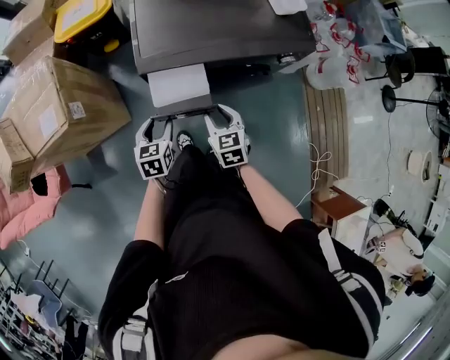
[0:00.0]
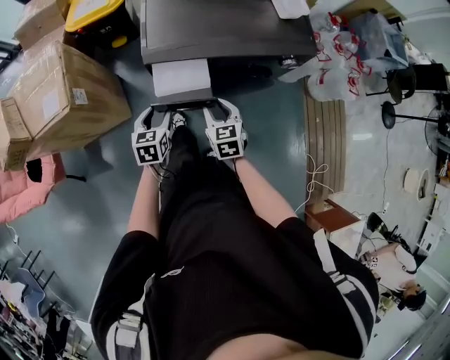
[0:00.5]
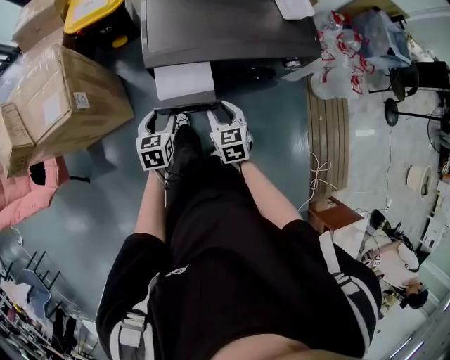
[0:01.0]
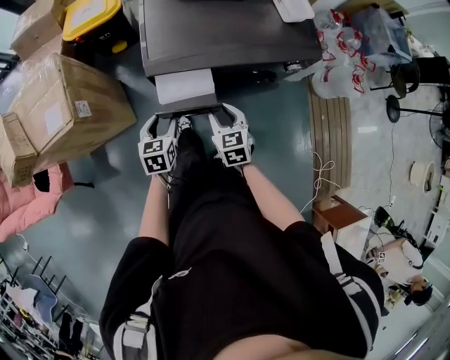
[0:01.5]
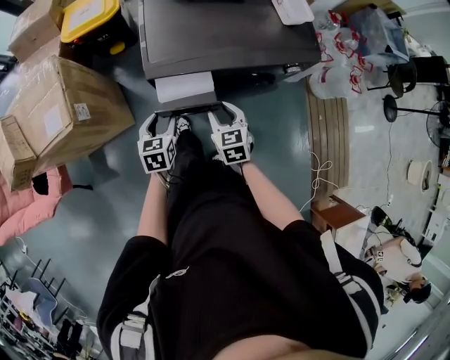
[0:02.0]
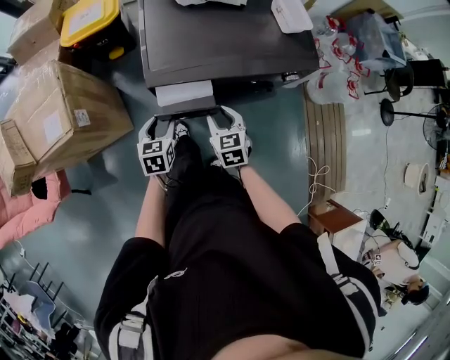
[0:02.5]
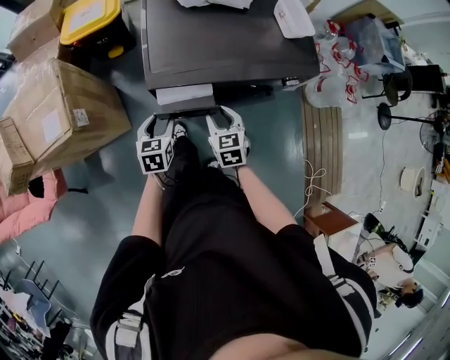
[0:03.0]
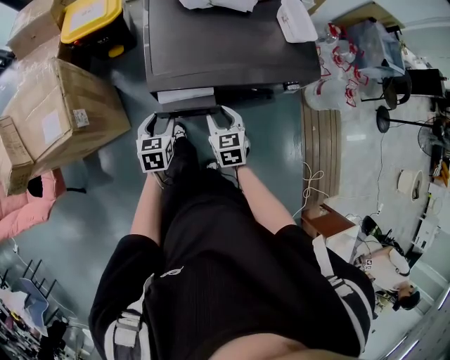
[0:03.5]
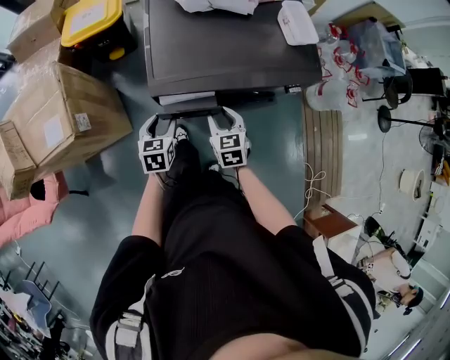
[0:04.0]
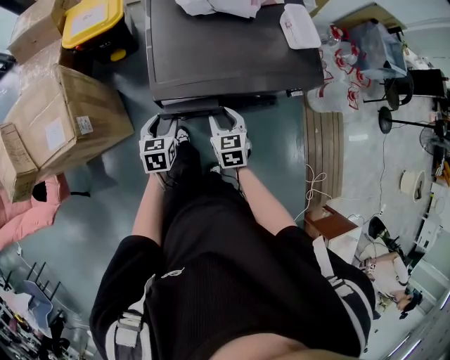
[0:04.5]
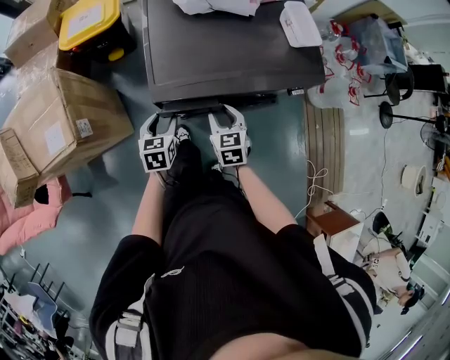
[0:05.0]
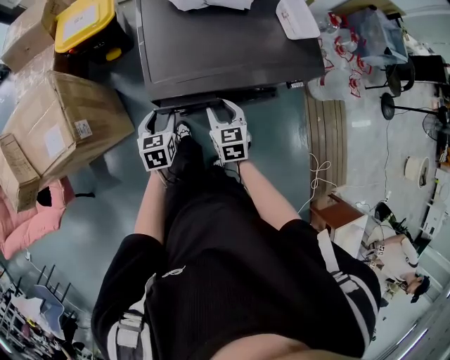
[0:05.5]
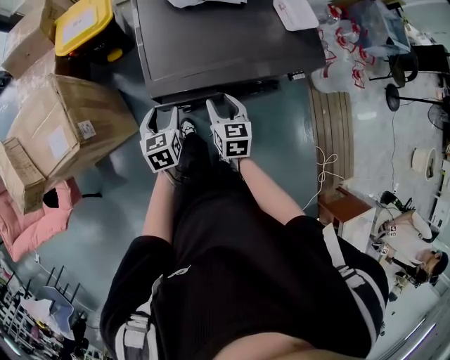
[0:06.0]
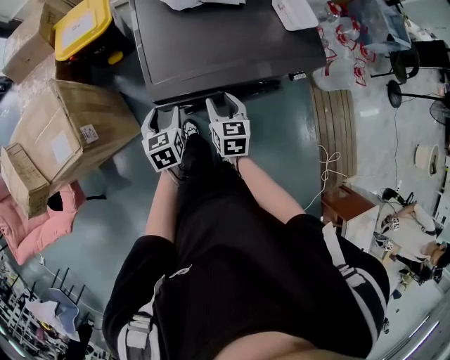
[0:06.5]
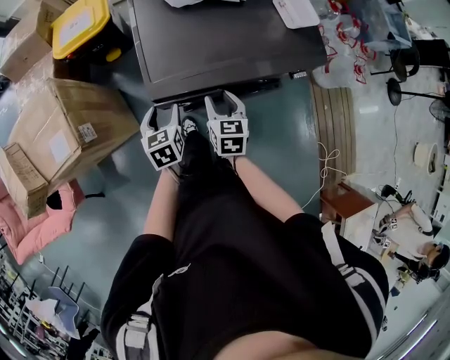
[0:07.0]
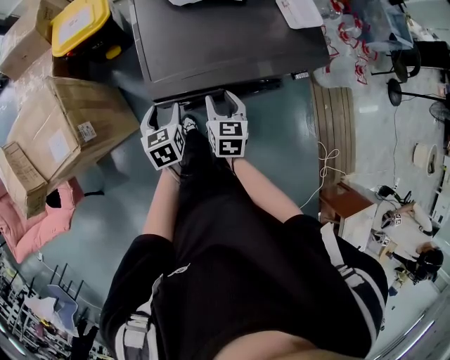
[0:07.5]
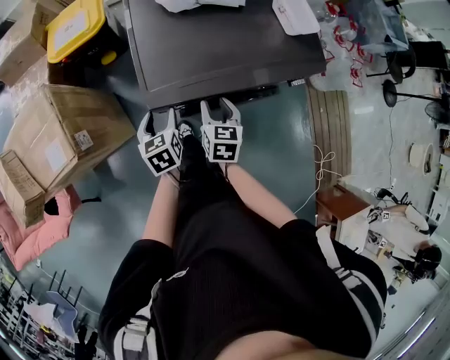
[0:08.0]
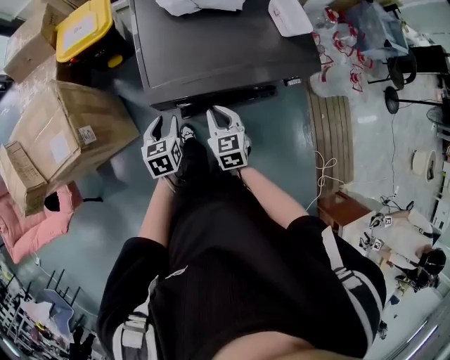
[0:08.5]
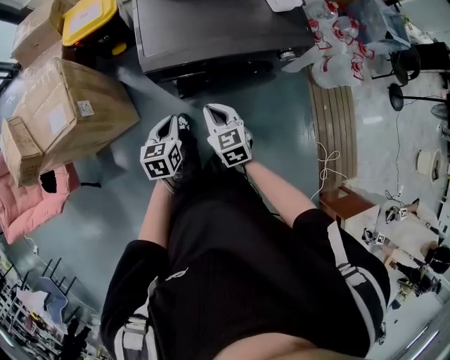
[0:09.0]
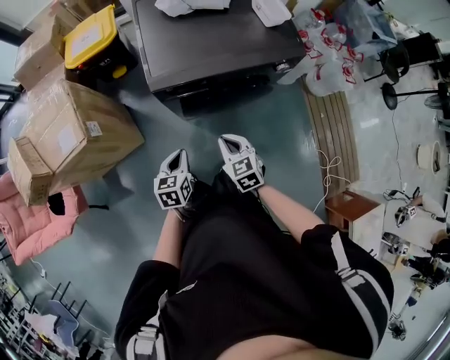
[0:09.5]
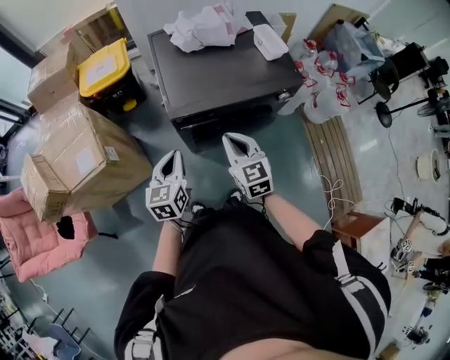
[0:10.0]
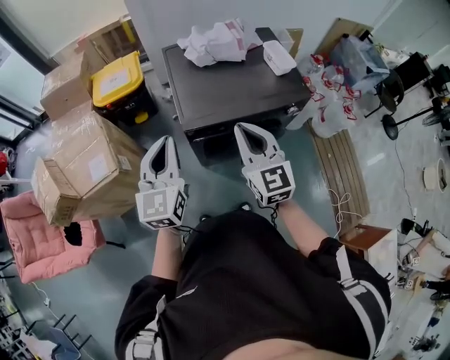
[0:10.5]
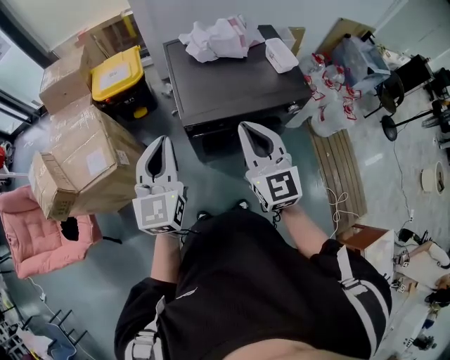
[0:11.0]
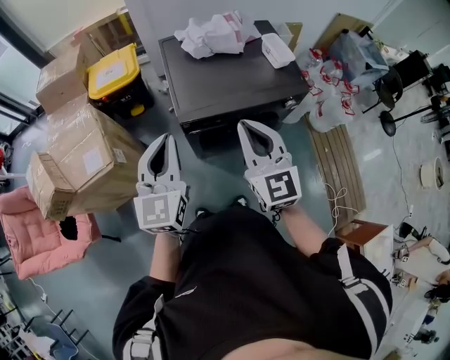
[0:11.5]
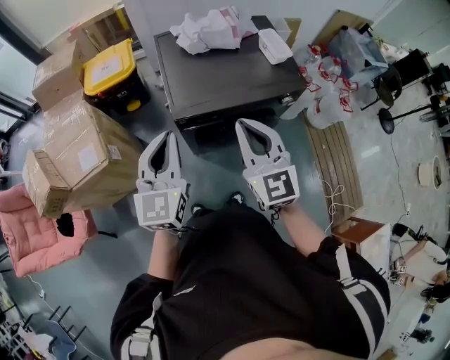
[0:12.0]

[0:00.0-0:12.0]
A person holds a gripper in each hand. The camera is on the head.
0:00.0 to 0:02.0: The grippers make only small movements.
0:02.0 to 0:04.0: The grippers stay close to where they were, moving slightly.
0:04.0 to 0:06.0: The grippers move only a little.
0:06.0 to 0:08.0: There are only small adjustments of the grippers.
0:08.0 to 0:10.0: The two grippers go approximately 20 cm upward and backward. The right gripper changes its angle by some 30 degrees, and closes its fingers. Meanwhile the left gripper changes its angle by some 30 degrees, and closes up.
0:10.0 to 0:12.0: Both grippers move upward, some 15 cm. The left gripper swivels roughly 20 degrees.

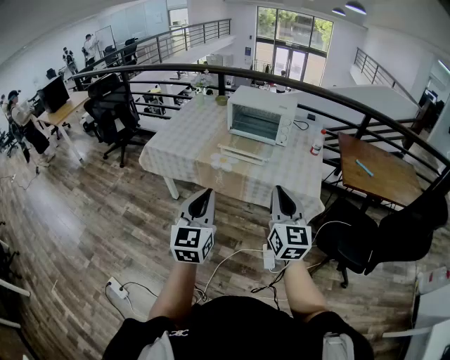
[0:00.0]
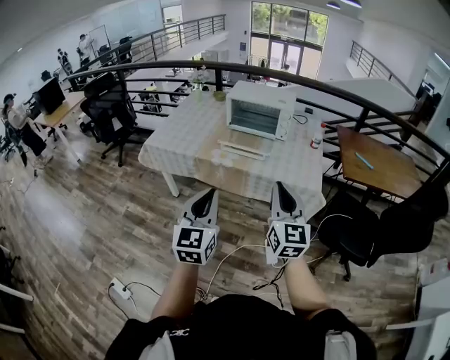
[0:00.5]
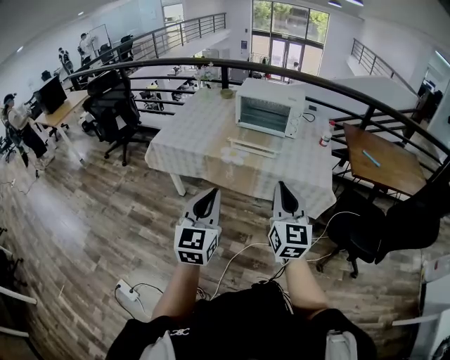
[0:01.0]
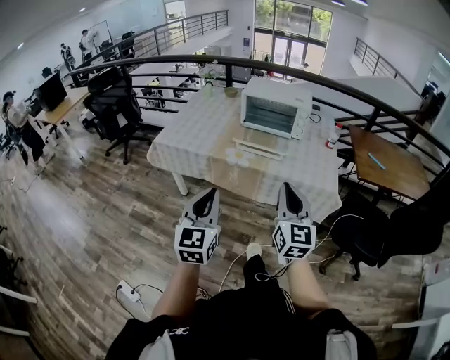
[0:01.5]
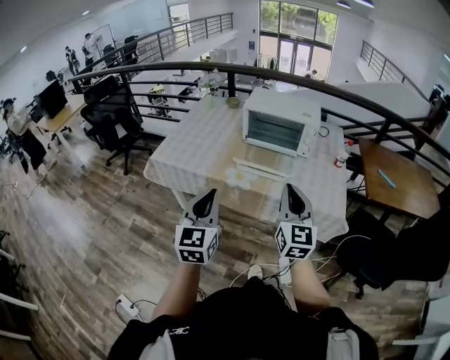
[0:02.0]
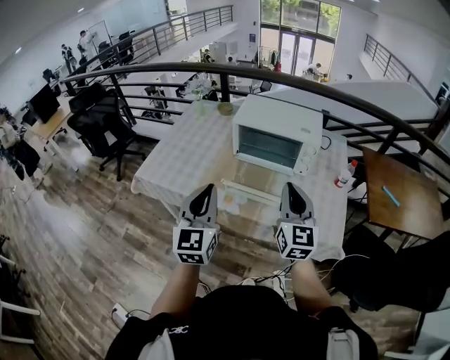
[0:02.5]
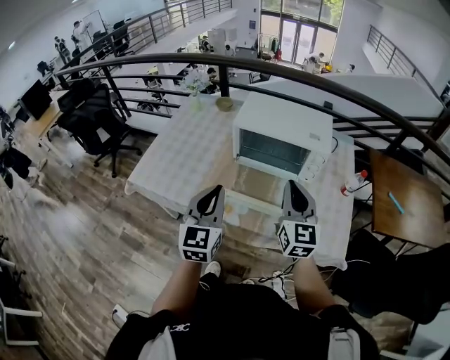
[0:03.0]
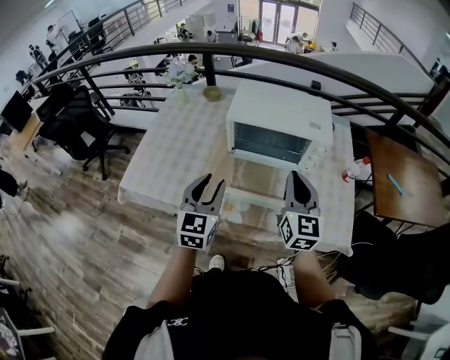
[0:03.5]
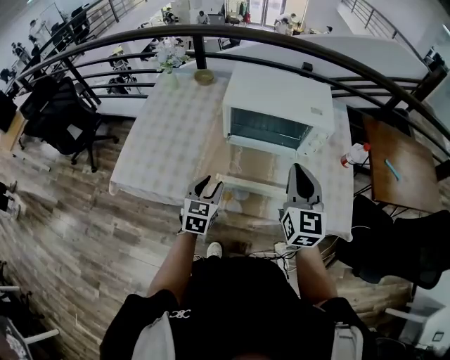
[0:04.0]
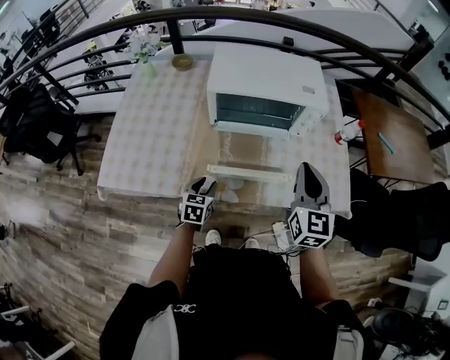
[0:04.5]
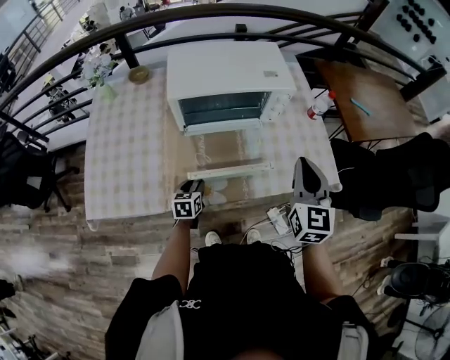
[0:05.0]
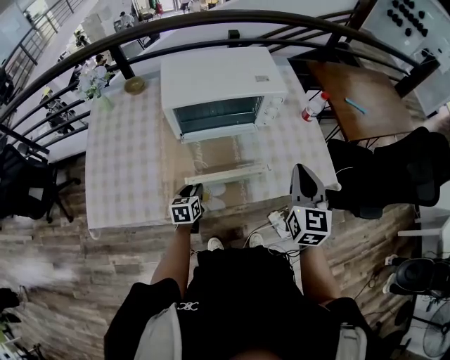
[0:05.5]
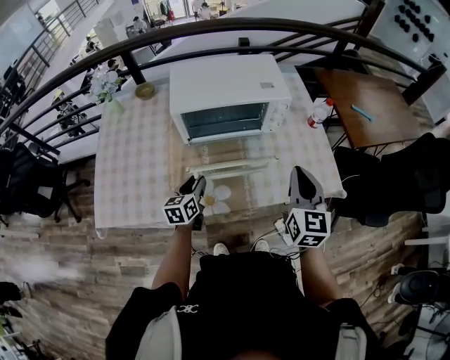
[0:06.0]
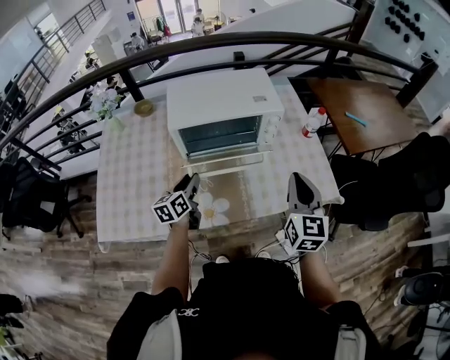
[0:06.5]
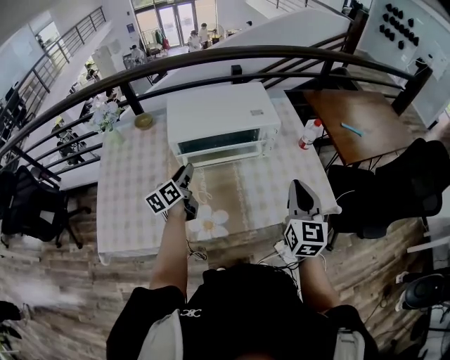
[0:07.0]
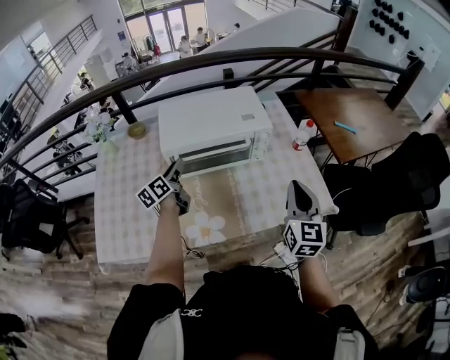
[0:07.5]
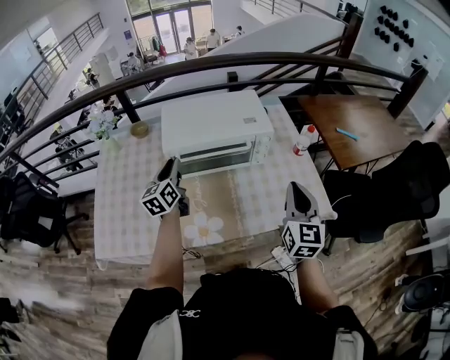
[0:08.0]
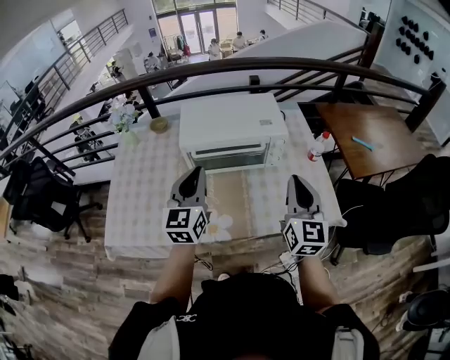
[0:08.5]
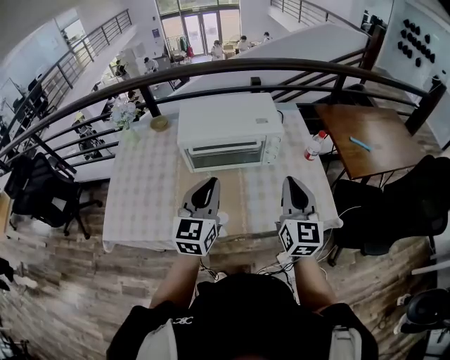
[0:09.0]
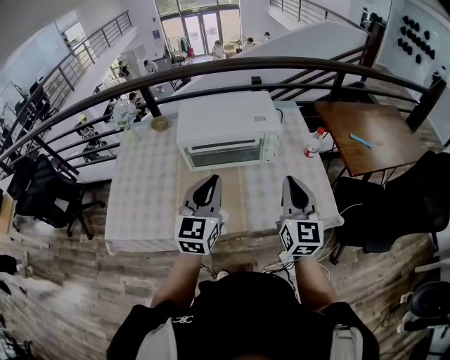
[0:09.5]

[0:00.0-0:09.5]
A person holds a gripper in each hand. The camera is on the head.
0:00.0 to 0:02.0: Both grippers travel together forward and to the left, about 20 cm.
0:02.0 to 0:04.0: The left gripper is displaced forward and downward by some 40 cm, rotates roughly 30 degrees, and opens its fingers. Meanwhile the right gripper shifts about 30 cm forward.
0:04.0 to 0:05.5: The left gripper travels downward by some 15 cm, and swivels about 20 degrees. The right gripper shifts some 10 cm to the right, and swivels some 20 degrees.
0:05.5 to 0:07.5: The left gripper travels upward and forward by about 25 cm, and changes its angle by approximately 40 degrees.
0:07.5 to 0:09.5: The left gripper travels backward, to the right and upward by some 30 cm, rolls clockwise, seen from behind, by approximately 50 degrees, and closes.

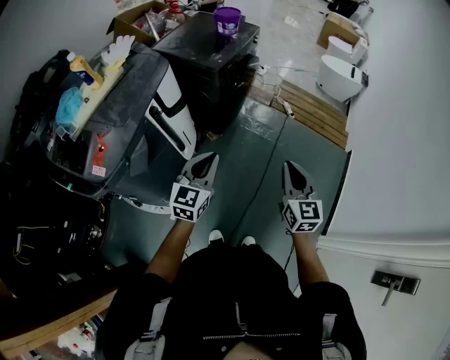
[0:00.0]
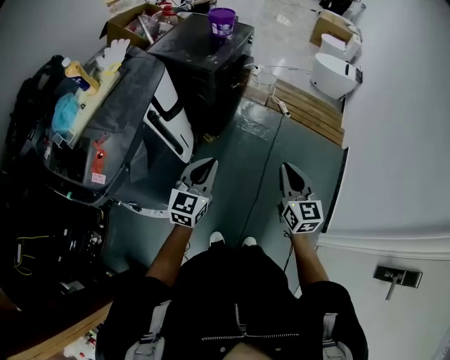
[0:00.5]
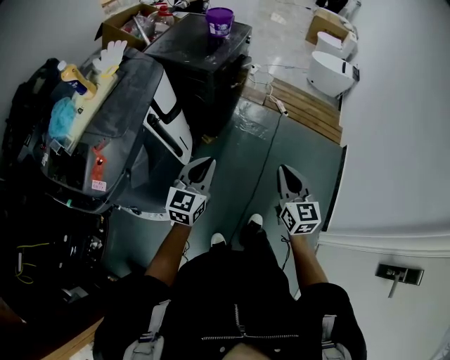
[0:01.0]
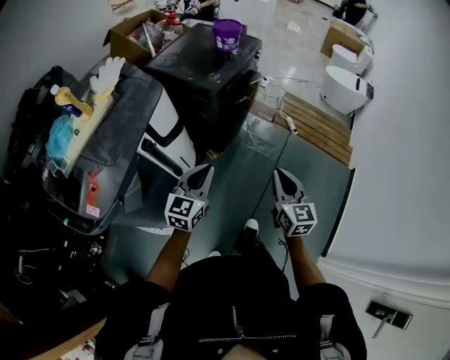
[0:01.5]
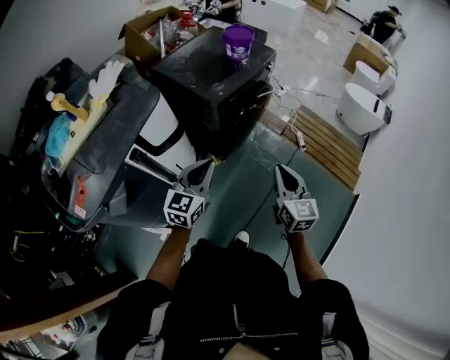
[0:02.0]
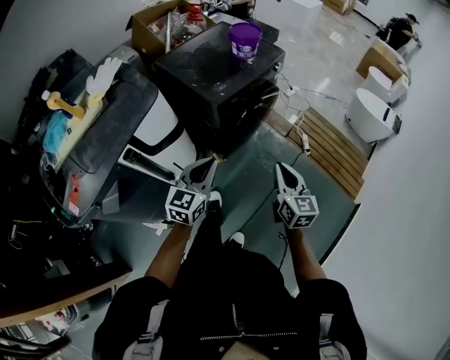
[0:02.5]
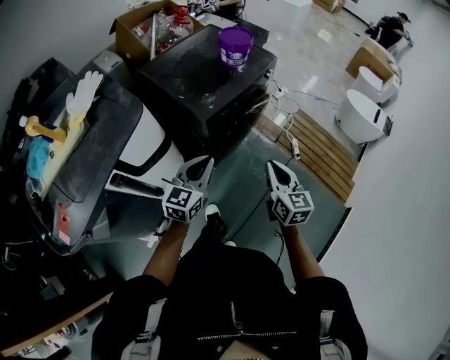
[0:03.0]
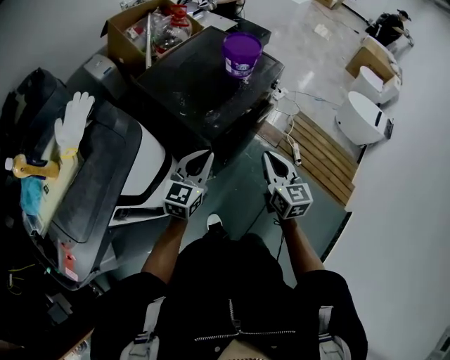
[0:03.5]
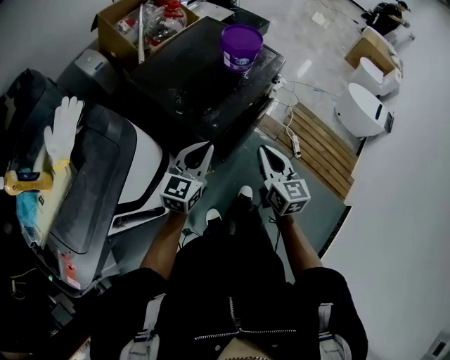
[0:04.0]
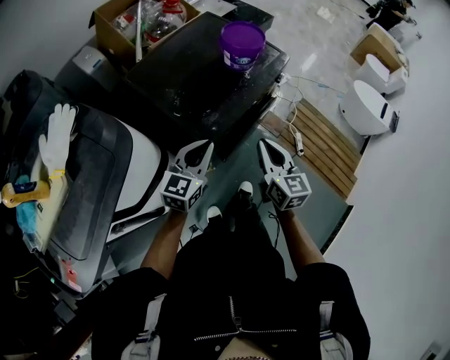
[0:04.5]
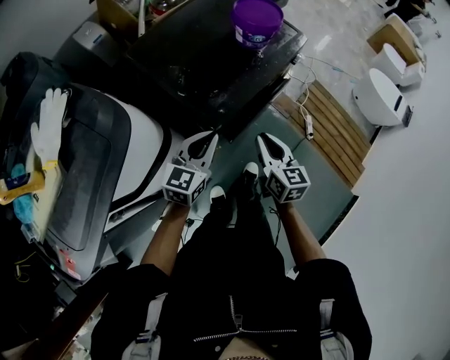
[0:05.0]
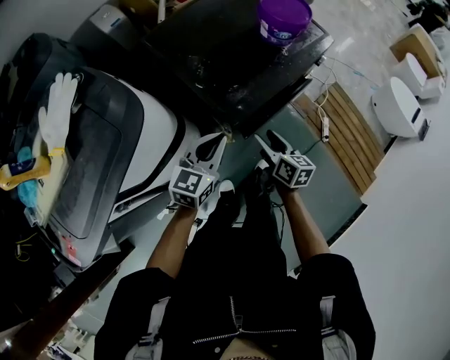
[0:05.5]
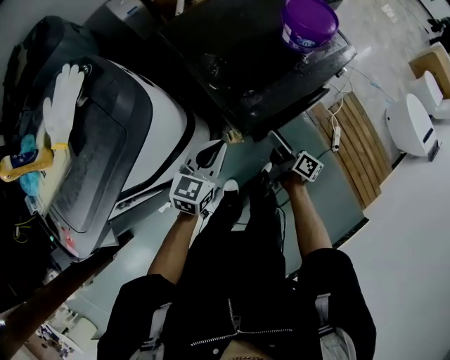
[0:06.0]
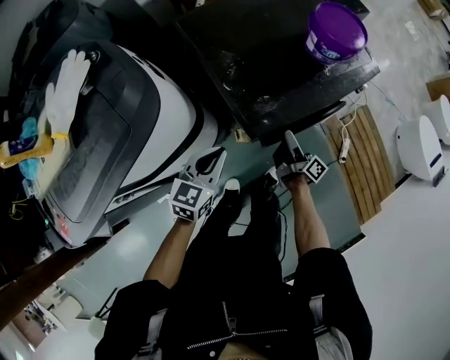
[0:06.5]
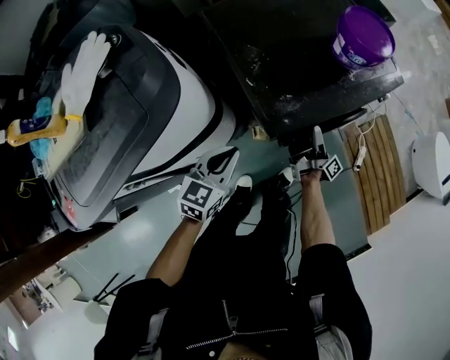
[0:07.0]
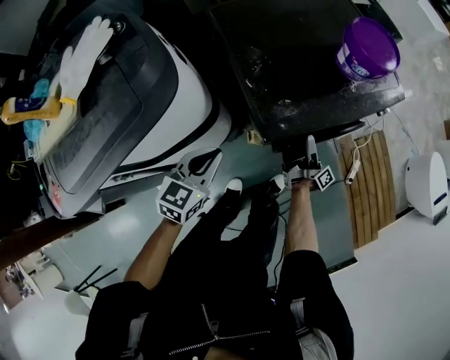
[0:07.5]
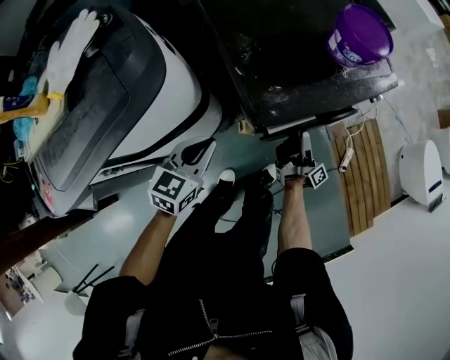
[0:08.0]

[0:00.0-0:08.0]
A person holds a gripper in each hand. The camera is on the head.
0:00.0 to 0:02.0: Both grippers move forward, approximately 25 cm.
0:02.0 to 0:04.0: The two grippers go about 30 cm forward.
0:04.0 to 0:06.0: The right gripper moves downward and forward, some 25 cm, rotates around the line of its fingers by roughly 50 degrees, clockwise from behind, and opens, while the left gripper is displaced downward by about 10 cm.
0:06.0 to 0:08.0: The left gripper moves about 5 cm, while the right gripper moves approximately 5 cm, and turns by approximately 40 degrees.
